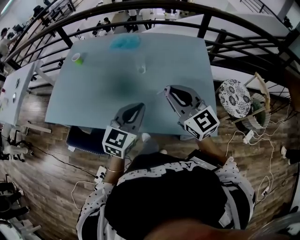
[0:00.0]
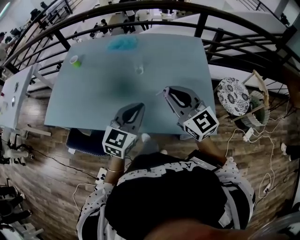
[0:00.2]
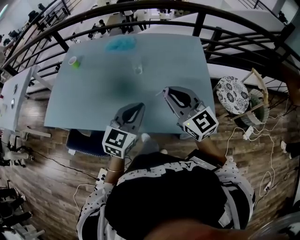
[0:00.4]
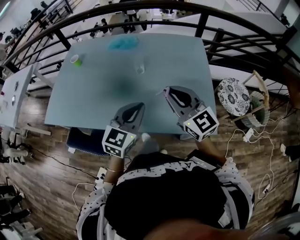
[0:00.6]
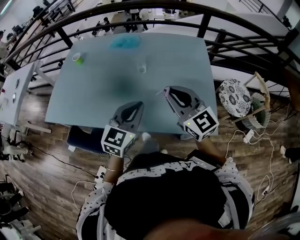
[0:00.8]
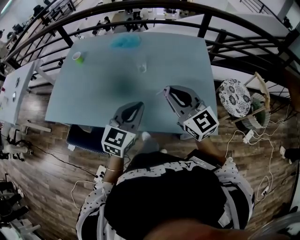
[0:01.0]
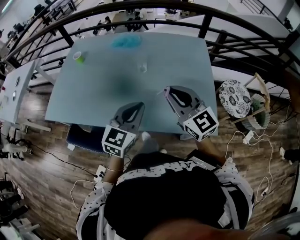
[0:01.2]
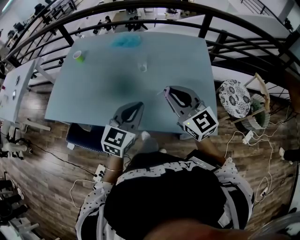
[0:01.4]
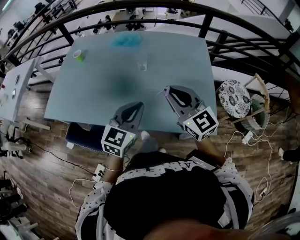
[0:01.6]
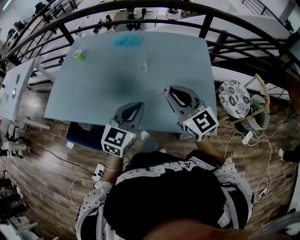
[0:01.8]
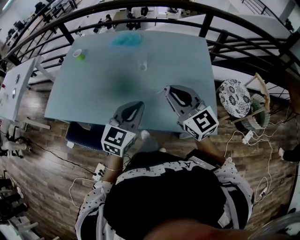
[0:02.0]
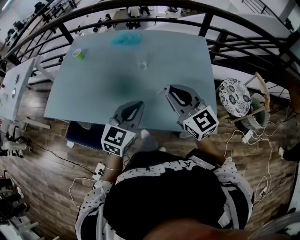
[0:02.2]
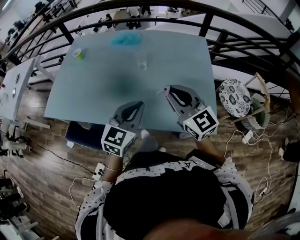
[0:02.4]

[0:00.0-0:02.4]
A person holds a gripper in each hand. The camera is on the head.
0:00.0 to 0:02.4: Both grippers stay put.

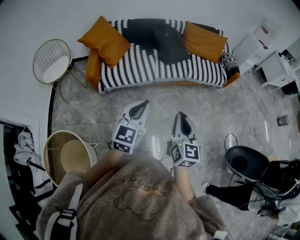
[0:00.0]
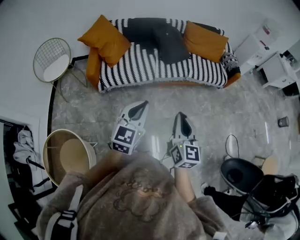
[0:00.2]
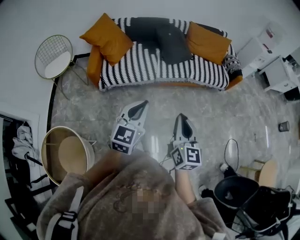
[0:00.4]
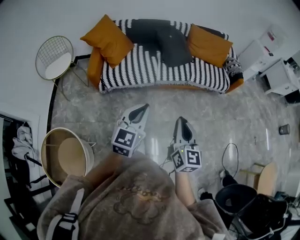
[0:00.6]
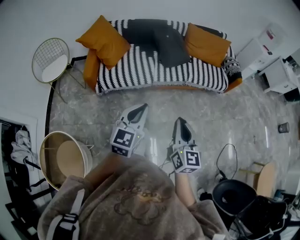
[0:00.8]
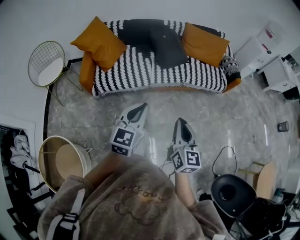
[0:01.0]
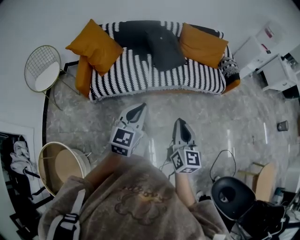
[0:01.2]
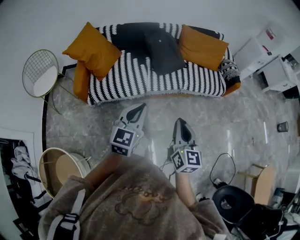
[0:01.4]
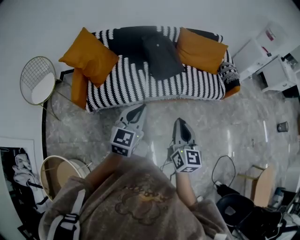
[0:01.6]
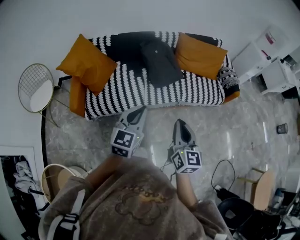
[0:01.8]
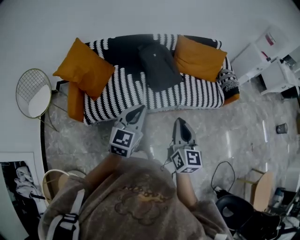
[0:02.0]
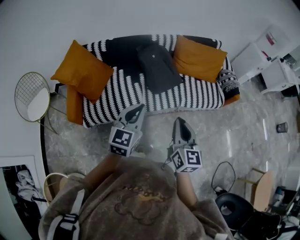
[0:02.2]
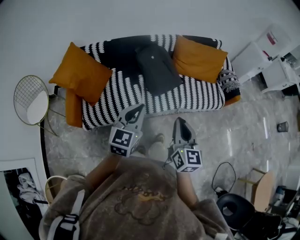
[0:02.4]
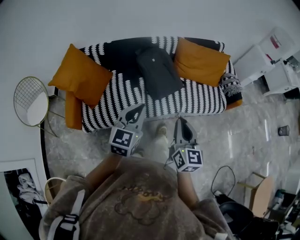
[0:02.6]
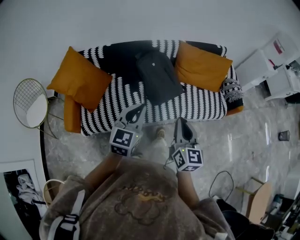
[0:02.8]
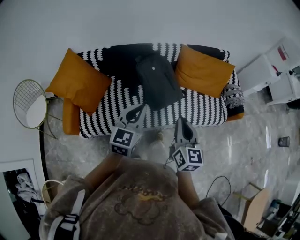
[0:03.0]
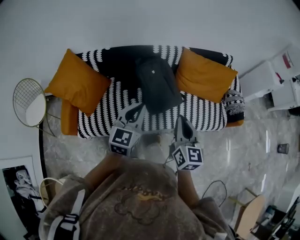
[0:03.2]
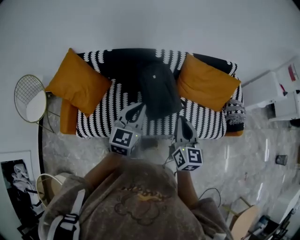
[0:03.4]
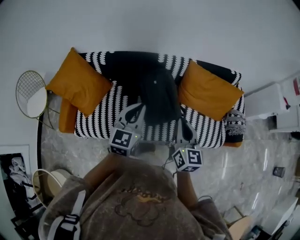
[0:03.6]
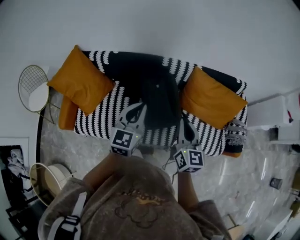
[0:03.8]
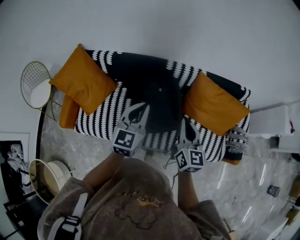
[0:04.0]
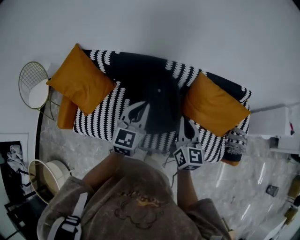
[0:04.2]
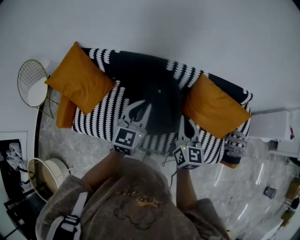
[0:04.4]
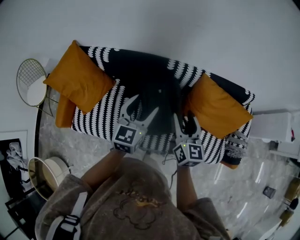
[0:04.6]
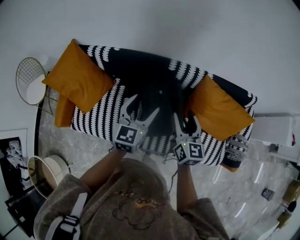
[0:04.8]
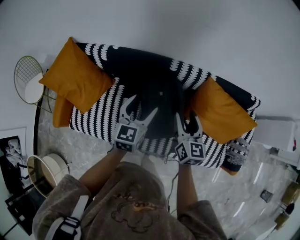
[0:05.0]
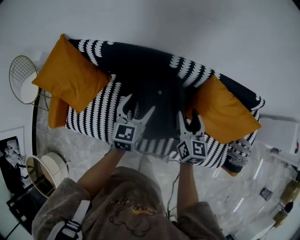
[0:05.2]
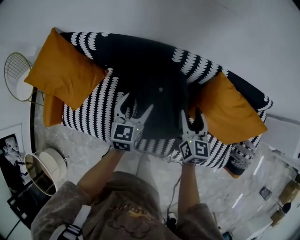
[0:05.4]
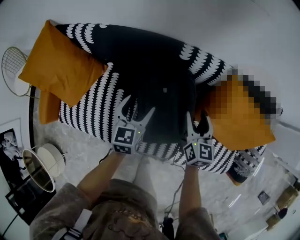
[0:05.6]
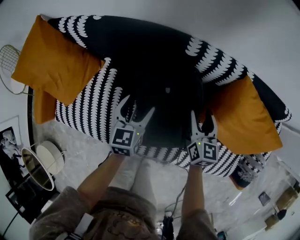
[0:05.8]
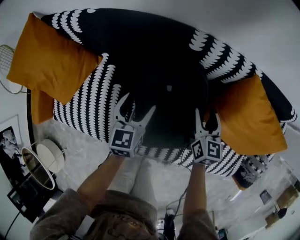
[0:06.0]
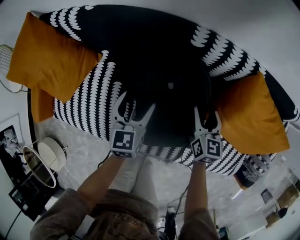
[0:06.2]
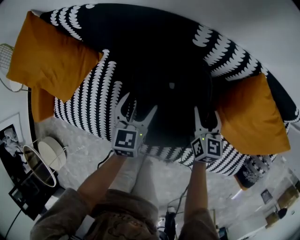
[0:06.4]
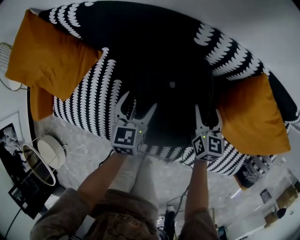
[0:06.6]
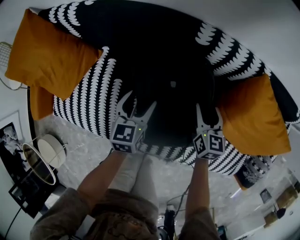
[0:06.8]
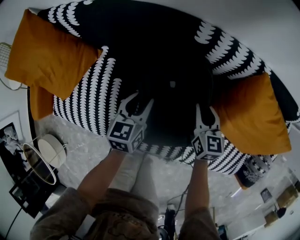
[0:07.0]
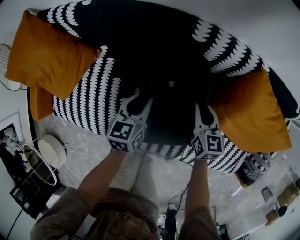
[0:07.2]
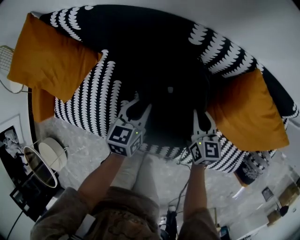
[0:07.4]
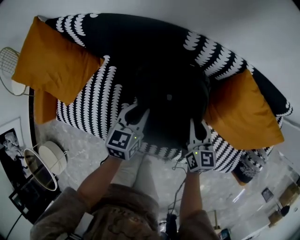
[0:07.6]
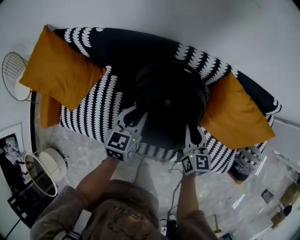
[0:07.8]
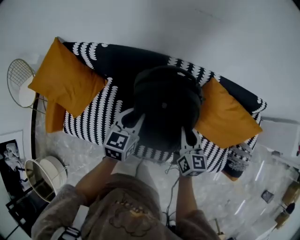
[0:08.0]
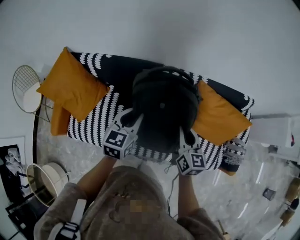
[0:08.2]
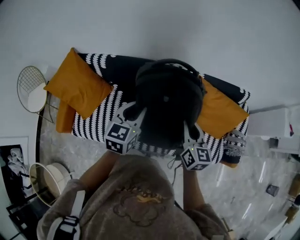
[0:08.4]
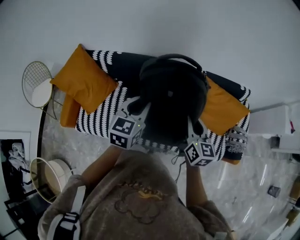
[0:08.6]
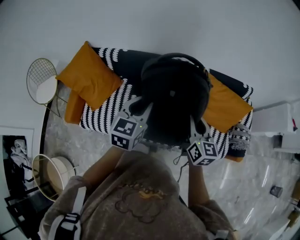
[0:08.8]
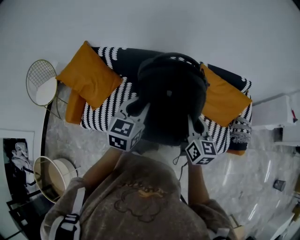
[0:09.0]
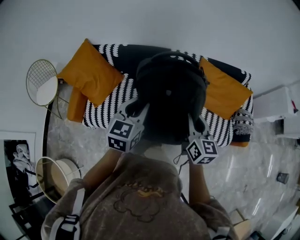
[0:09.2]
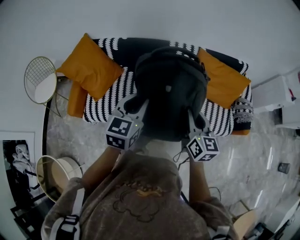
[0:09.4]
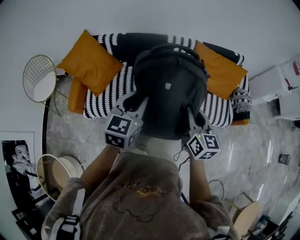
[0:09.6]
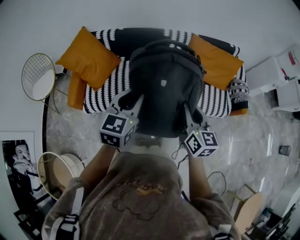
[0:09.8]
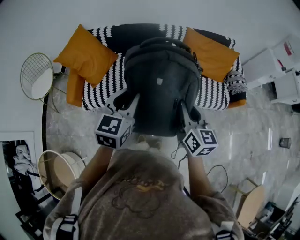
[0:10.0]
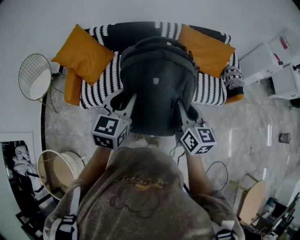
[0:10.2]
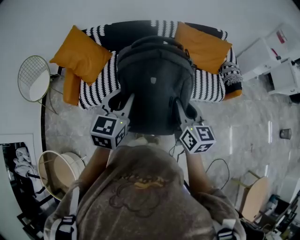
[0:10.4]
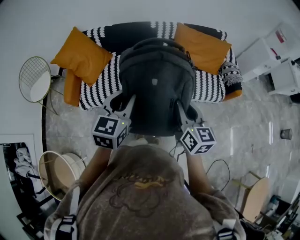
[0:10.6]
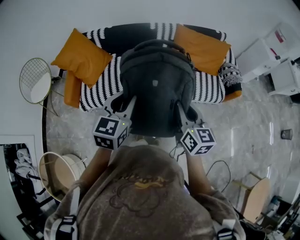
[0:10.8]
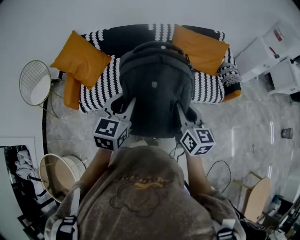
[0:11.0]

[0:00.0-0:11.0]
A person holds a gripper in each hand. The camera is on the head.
0:00.0 to 0:01.6: The two grippers go approximately 25 cm forward.
0:01.6 to 0:03.2: The two grippers go approximately 35 cm forward.
0:03.2 to 0:04.8: The grippers both shift forward by roughly 30 cm. The left gripper opens. The right gripper opens.
0:04.8 to 0:06.2: The grippers both shift downward by some 35 cm.
0:06.2 to 0:07.8: The left gripper heads upward, covering about 10 cm, and closes up. The right gripper travels upward and backward by some 15 cm, and closes up.
0:07.8 to 0:09.4: Both grippers travel together backward and upward, about 50 cm.
0:09.4 to 0:11.0: Both grippers move backward, some 20 cm.

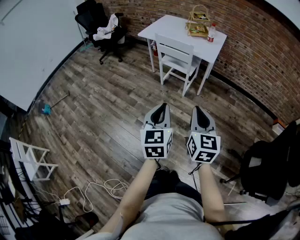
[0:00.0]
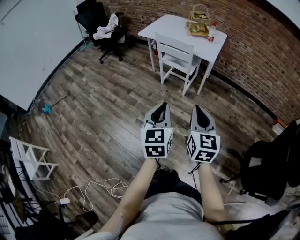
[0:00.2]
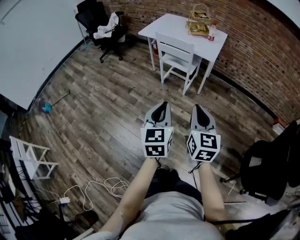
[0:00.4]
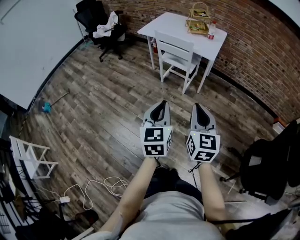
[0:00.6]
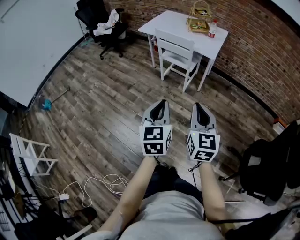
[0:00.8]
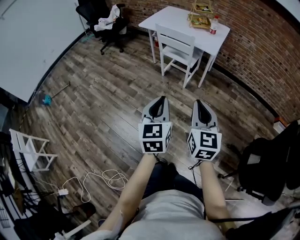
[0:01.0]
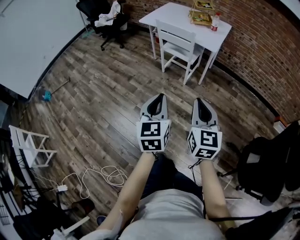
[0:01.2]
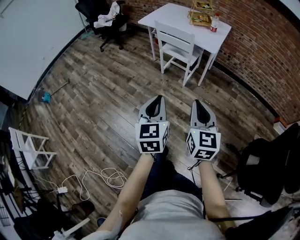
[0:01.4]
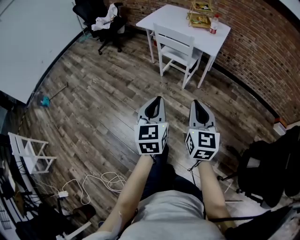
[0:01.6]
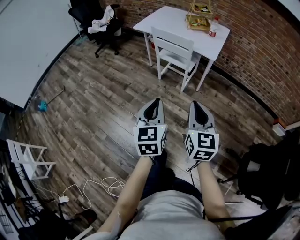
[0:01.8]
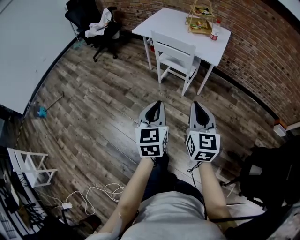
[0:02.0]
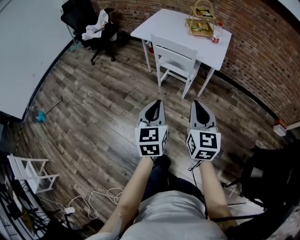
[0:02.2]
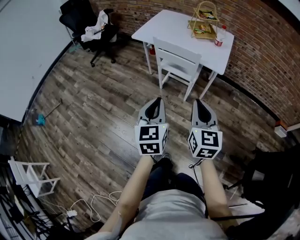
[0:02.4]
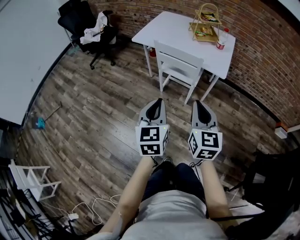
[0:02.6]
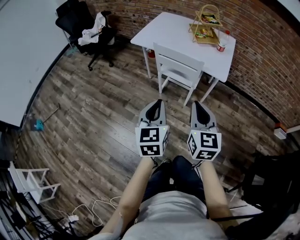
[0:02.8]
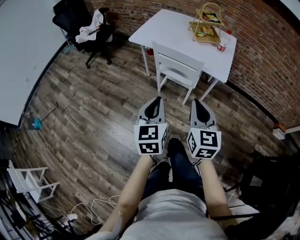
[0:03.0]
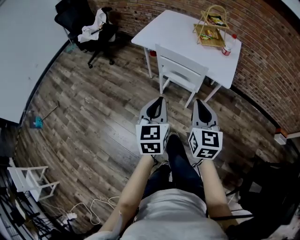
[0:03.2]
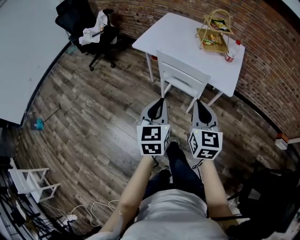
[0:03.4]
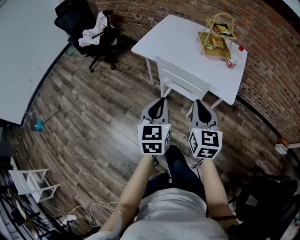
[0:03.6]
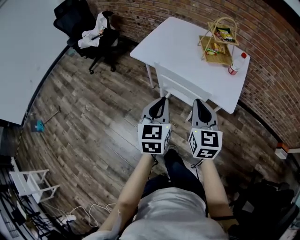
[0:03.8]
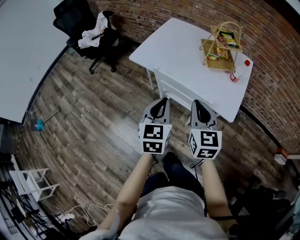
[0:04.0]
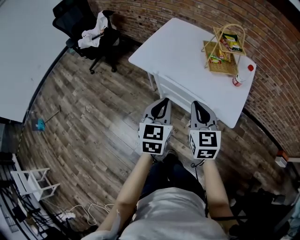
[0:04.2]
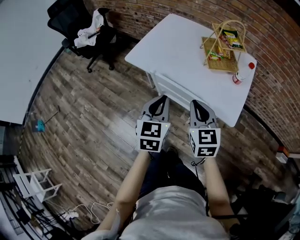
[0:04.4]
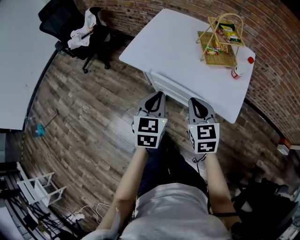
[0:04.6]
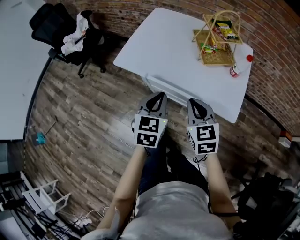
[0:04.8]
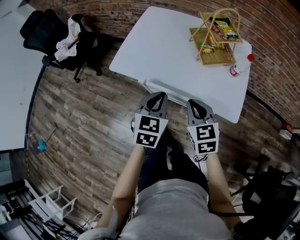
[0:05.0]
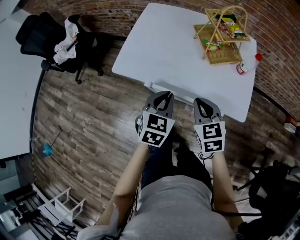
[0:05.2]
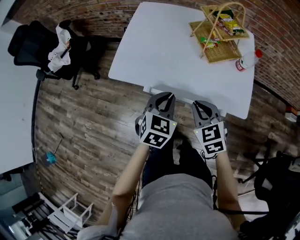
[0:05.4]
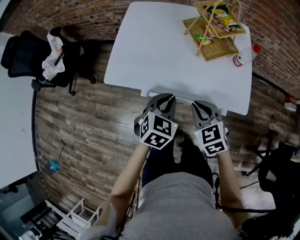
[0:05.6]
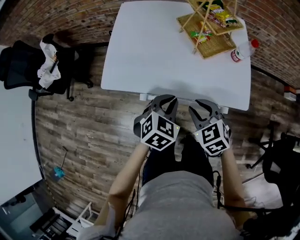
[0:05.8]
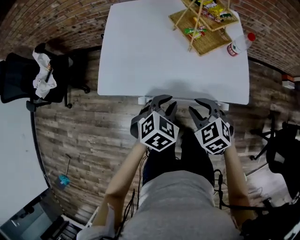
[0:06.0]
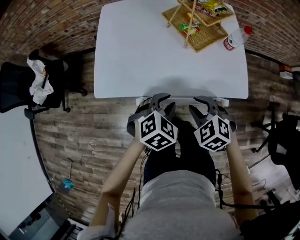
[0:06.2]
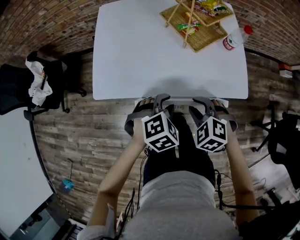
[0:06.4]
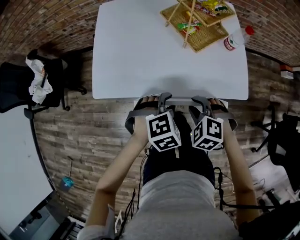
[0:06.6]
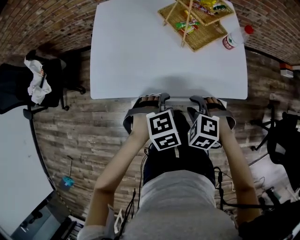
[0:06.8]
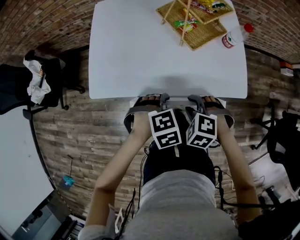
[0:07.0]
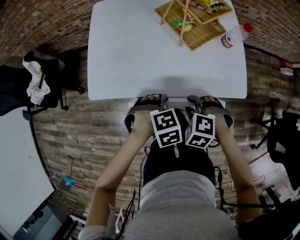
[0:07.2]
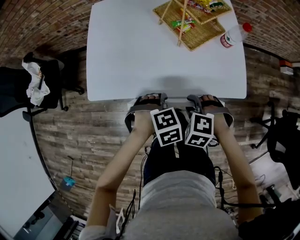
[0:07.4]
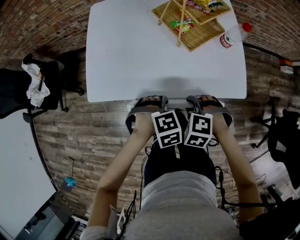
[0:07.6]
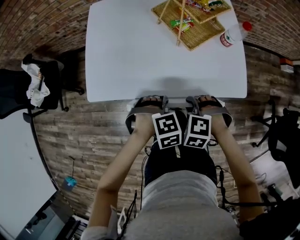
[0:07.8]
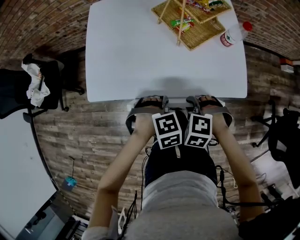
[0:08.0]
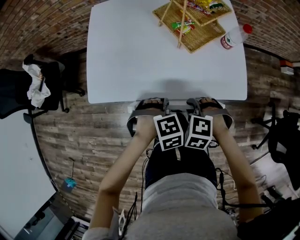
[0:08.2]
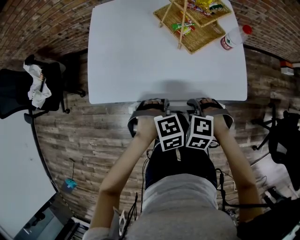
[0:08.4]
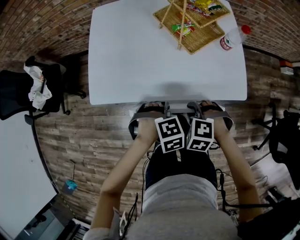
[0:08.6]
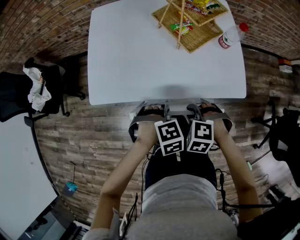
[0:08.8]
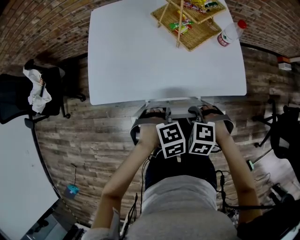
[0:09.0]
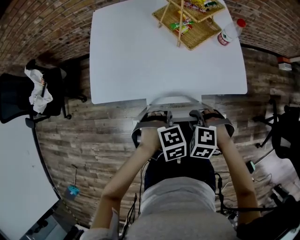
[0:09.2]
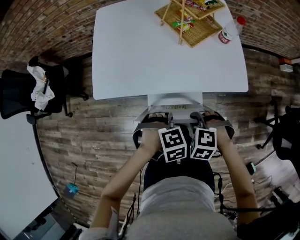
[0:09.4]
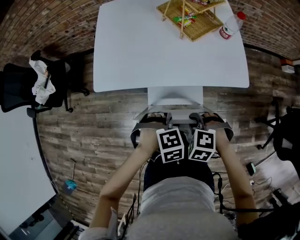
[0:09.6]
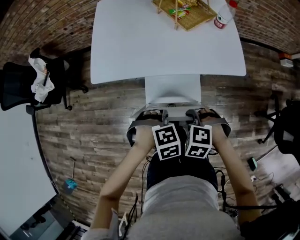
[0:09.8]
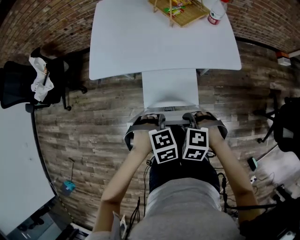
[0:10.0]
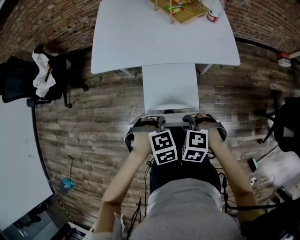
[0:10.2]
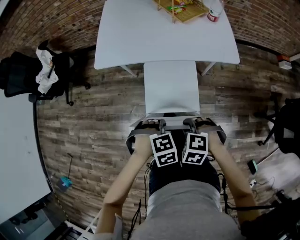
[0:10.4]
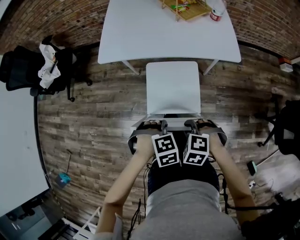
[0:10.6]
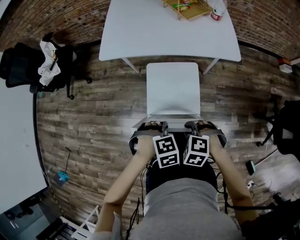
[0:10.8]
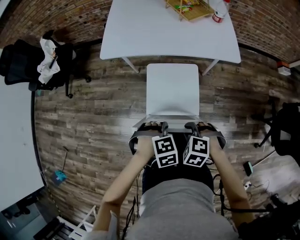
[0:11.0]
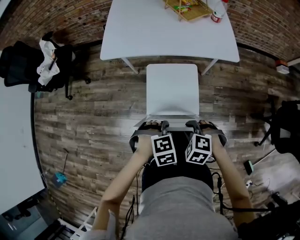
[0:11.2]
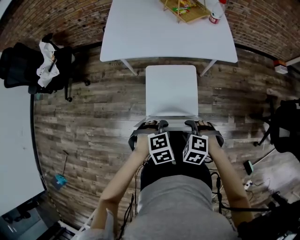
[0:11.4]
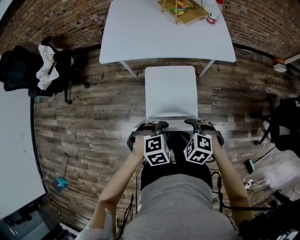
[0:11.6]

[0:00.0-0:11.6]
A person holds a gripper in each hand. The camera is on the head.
0:00.0 to 0:01.4: The grippers move only a little.
0:01.4 to 0:02.8: The two grippers go about 30 cm forward.
0:02.8 to 0:04.4: Both grippers move forward, some 35 cm.
0:04.4 to 0:05.8: The left gripper moves forward and downward, approximately 15 cm, and turns by some 50 degrees; the right gripper goes about 15 cm downward and forward, turns by about 20 degrees, and opens up.
0:05.8 to 0:07.2: The two grippers go approximately 5 cm downward. The left gripper tips its fingers downward by roughly 30 degrees, and opens. The right gripper rotates roughly 40 degrees.
0:07.2 to 0:08.8: The left gripper closes up.
0:08.8 to 0:10.2: The right gripper shifts by roughly 25 cm. The left gripper moves roughly 25 cm.
0:10.2 to 0:11.6: The right gripper moves some 10 cm, and opens. The left gripper moves approximately 10 cm.
